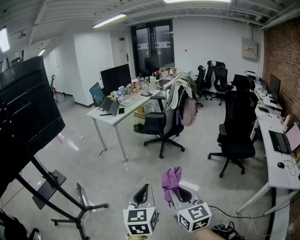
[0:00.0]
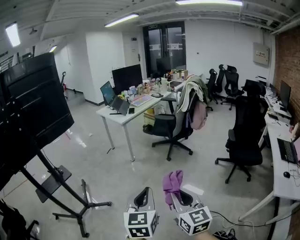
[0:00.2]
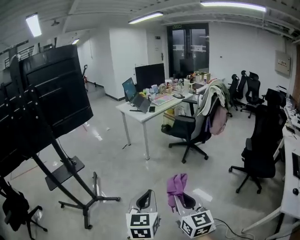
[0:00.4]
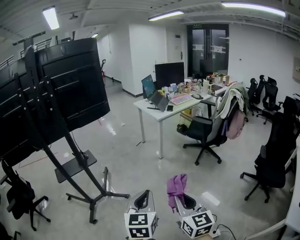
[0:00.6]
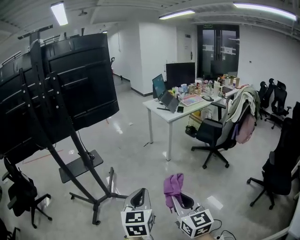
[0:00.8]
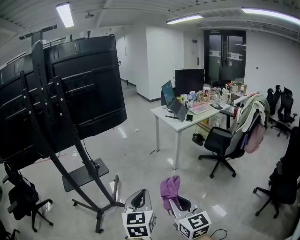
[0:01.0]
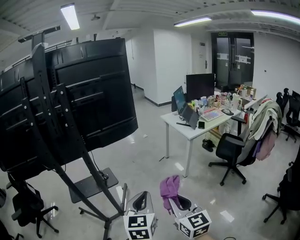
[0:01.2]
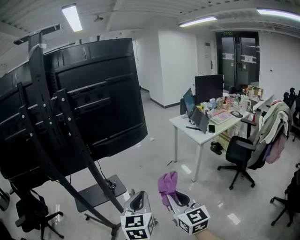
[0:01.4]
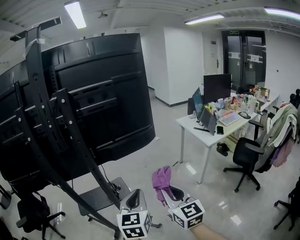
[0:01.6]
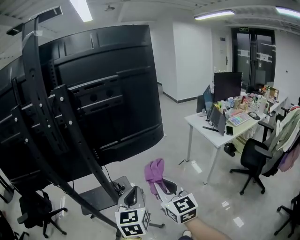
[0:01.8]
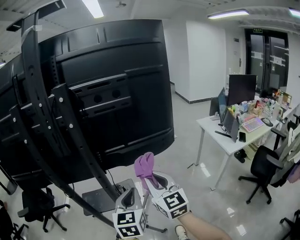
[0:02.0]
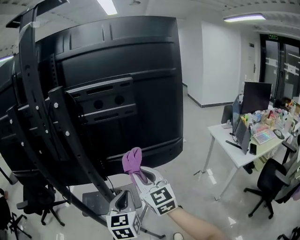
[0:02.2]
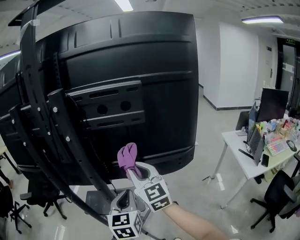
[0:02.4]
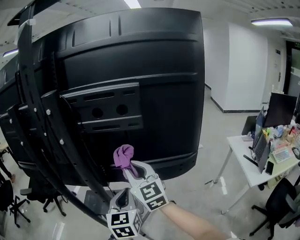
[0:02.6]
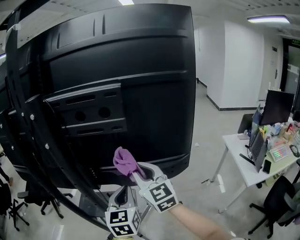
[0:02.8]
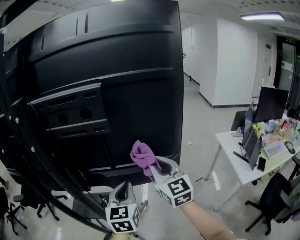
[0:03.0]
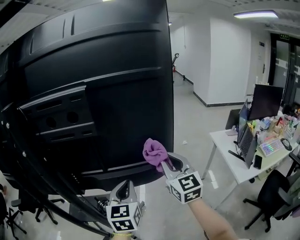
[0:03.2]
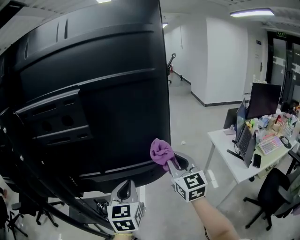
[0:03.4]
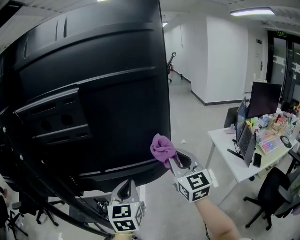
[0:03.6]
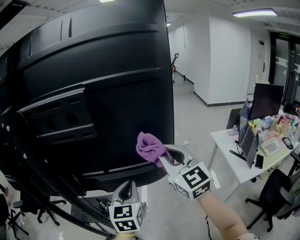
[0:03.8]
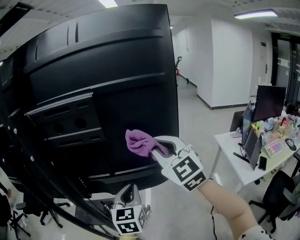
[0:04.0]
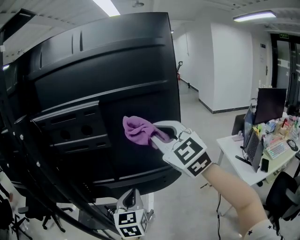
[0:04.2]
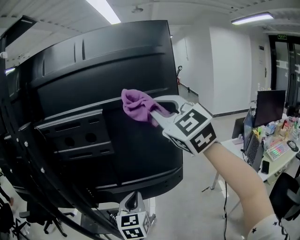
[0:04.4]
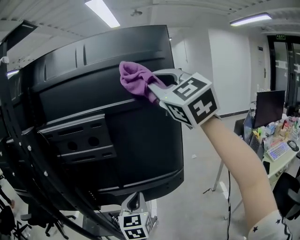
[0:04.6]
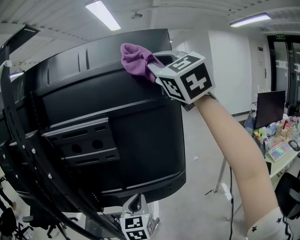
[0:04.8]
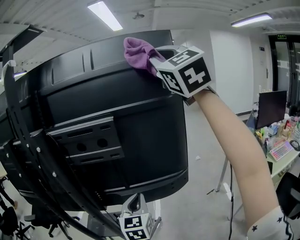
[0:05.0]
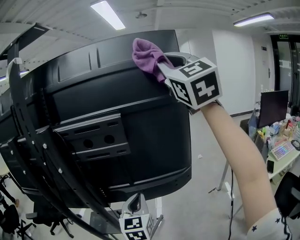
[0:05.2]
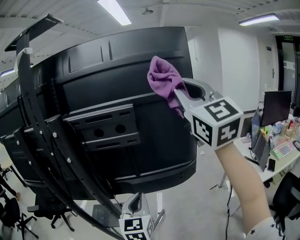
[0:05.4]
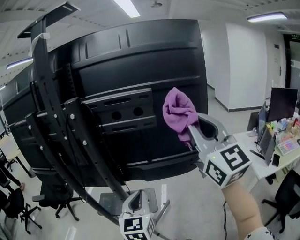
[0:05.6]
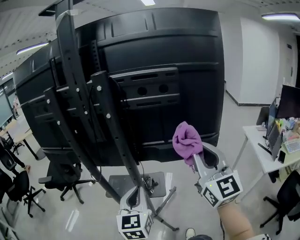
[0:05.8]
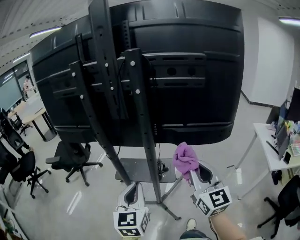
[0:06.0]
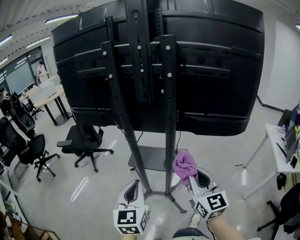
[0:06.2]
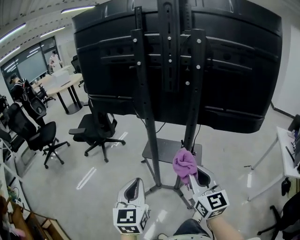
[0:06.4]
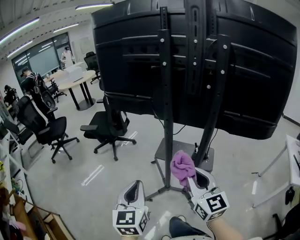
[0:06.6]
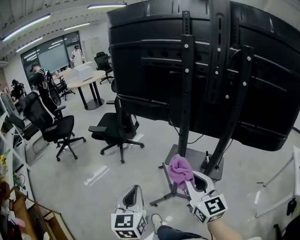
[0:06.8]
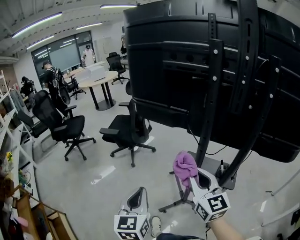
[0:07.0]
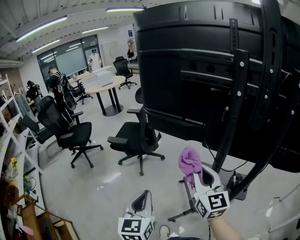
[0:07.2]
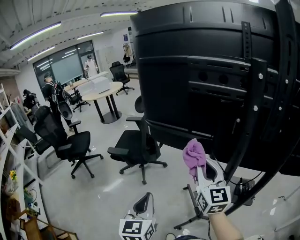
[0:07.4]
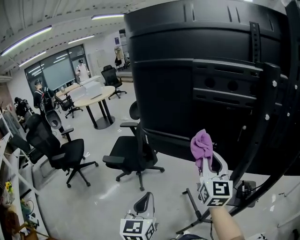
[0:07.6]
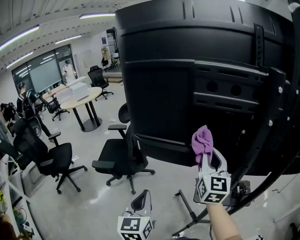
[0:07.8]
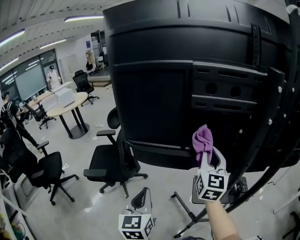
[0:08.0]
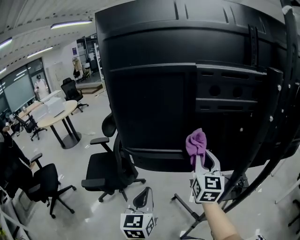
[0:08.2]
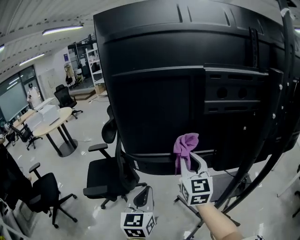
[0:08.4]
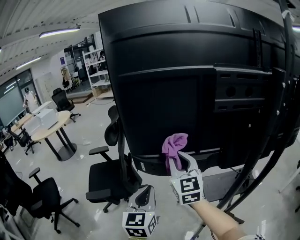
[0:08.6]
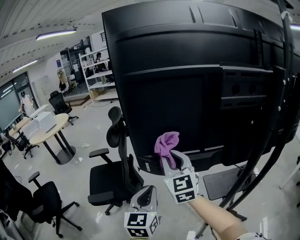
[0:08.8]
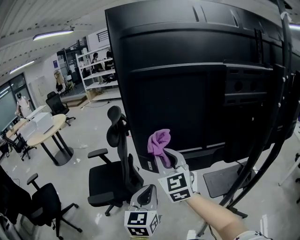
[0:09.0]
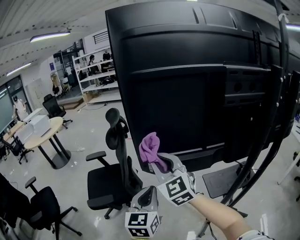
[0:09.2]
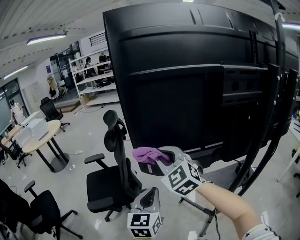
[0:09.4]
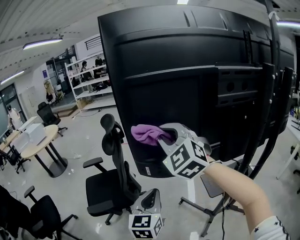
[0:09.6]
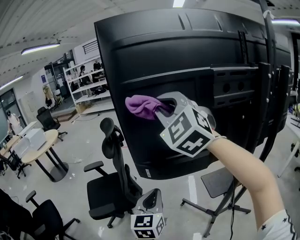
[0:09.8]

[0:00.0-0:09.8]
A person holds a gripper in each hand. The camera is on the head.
0:00.0 to 0:01.4: The two grippers travel together, roughly 50 cm. The right gripper turns by approximately 40 degrees, while the left gripper rotates approximately 30 degrees.
0:01.4 to 0:02.8: The left gripper ends up roughly 35 cm from where it was, and rotates some 30 degrees, while the right gripper ends up approximately 50 cm from where it was, and swivels approximately 40 degrees.
0:02.8 to 0:04.2: The right gripper shifts approximately 20 cm upward and to the right, and swivels roughly 20 degrees; the left gripper travels to the right by roughly 5 cm.
0:04.2 to 0:05.6: The left gripper is displaced to the left and backward by about 15 cm, while the right gripper shifts approximately 10 cm backward, goes upward and returns, about 30 cm each way, and swivels approximately 30 degrees.
0:05.6 to 0:07.0: Both grippers are carried about 50 cm. The left gripper swivels about 30 degrees; the right gripper swivels approximately 40 degrees.
0:07.0 to 0:08.4: Both grippers are carried roughly 40 cm. The left gripper rotates approximately 30 degrees. Meanwhile the right gripper turns by roughly 40 degrees.
0:08.4 to 0:09.8: The left gripper changes place by about 5 cm; the right gripper is displaced upward and to the left by roughly 25 cm, and twists some 50 degrees counterclockwise, seen from behind.

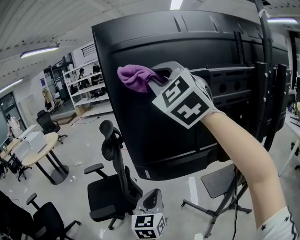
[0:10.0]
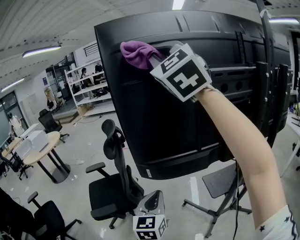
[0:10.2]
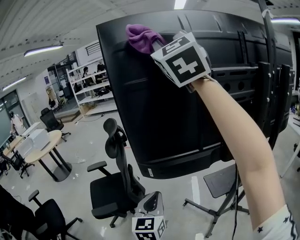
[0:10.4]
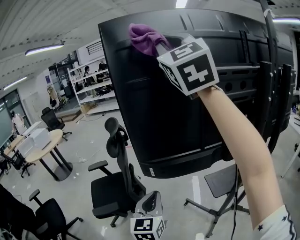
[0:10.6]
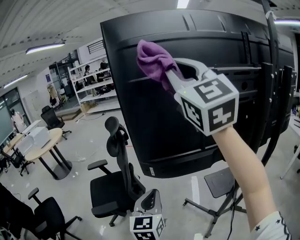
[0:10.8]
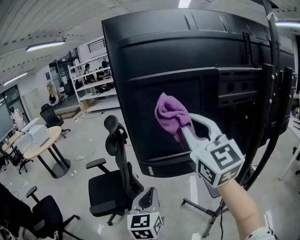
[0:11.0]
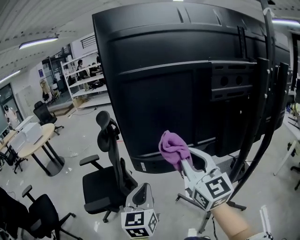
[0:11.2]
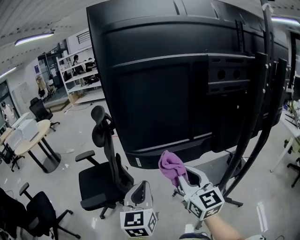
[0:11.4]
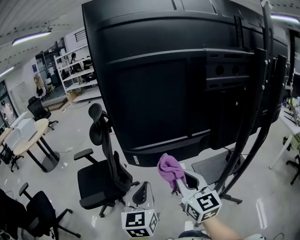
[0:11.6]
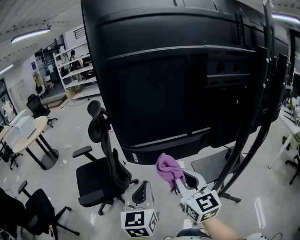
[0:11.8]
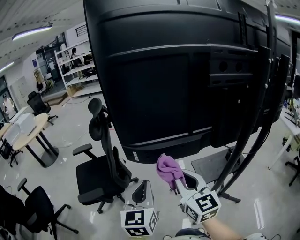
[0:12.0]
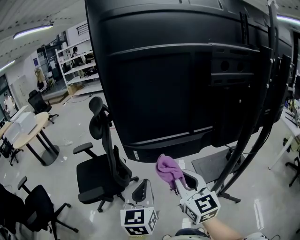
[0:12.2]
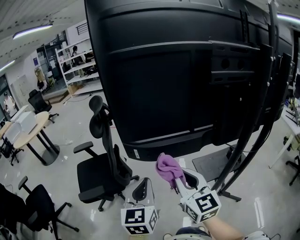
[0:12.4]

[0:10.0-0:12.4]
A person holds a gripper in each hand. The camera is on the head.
0:10.0 to 0:11.2: The right gripper is displaced downward by roughly 25 cm, and twists approximately 40 degrees clockwise, seen from behind.
0:11.2 to 0:12.4: The right gripper goes some 15 cm downward.

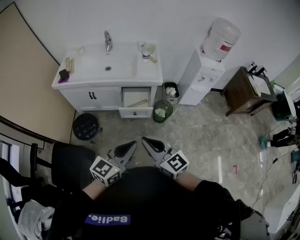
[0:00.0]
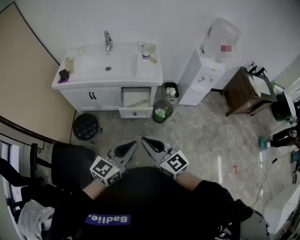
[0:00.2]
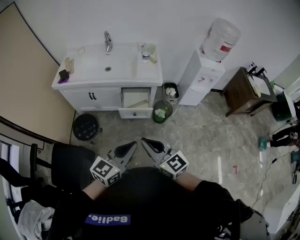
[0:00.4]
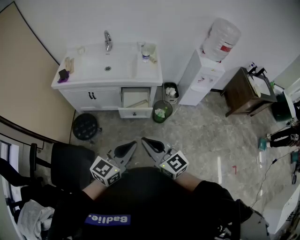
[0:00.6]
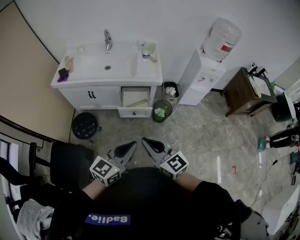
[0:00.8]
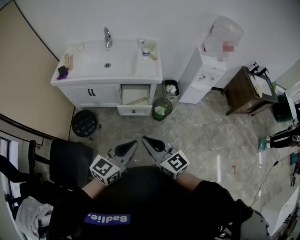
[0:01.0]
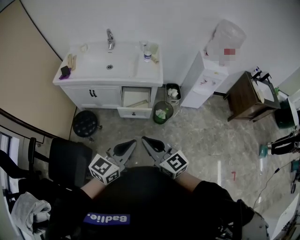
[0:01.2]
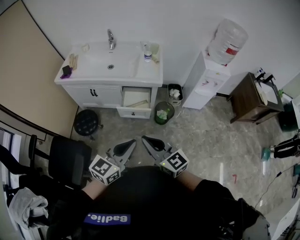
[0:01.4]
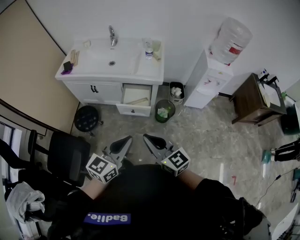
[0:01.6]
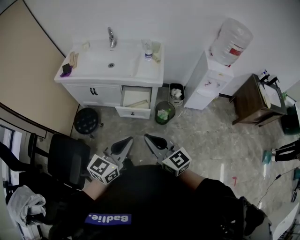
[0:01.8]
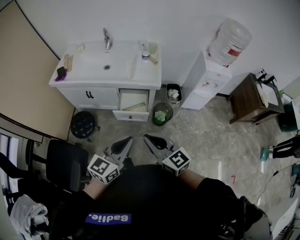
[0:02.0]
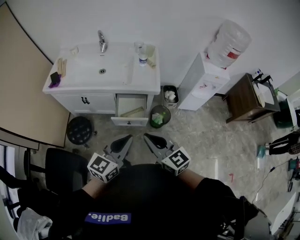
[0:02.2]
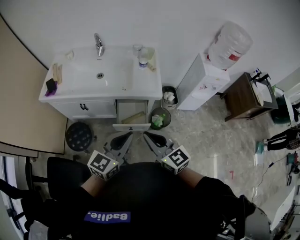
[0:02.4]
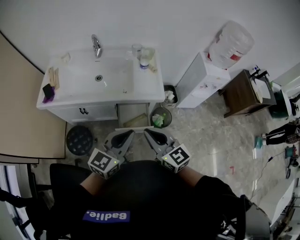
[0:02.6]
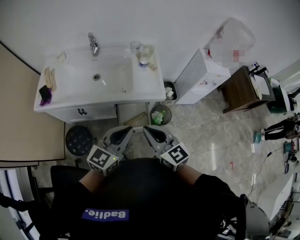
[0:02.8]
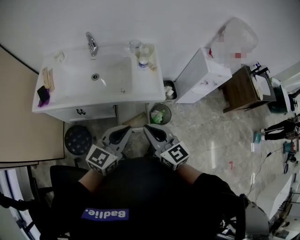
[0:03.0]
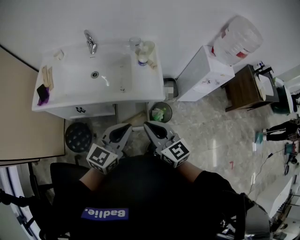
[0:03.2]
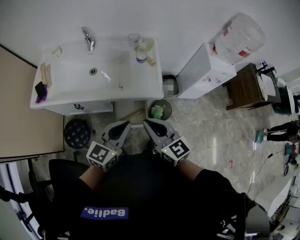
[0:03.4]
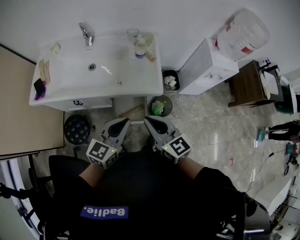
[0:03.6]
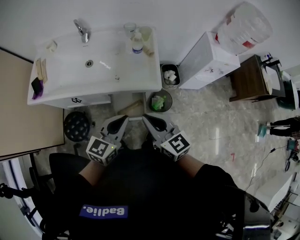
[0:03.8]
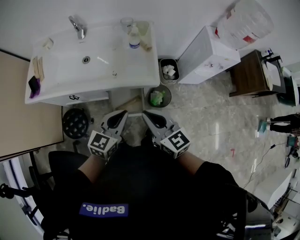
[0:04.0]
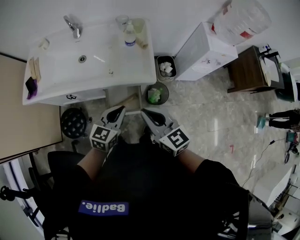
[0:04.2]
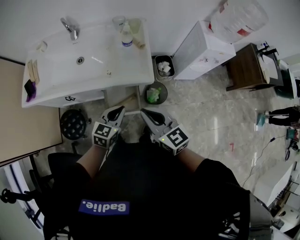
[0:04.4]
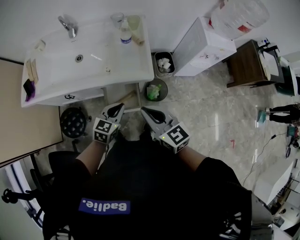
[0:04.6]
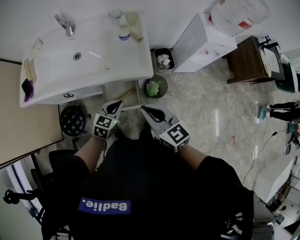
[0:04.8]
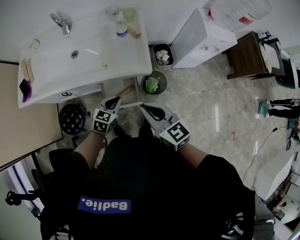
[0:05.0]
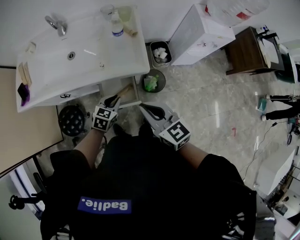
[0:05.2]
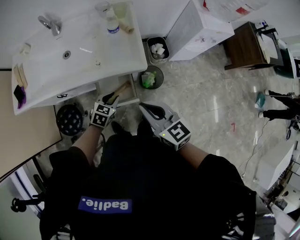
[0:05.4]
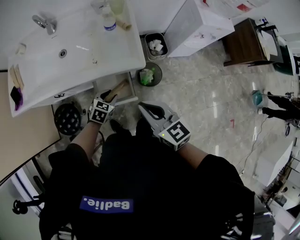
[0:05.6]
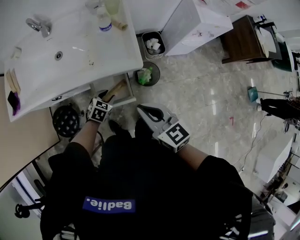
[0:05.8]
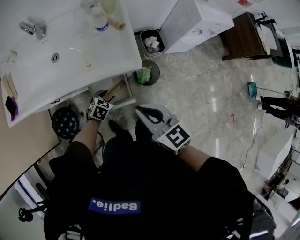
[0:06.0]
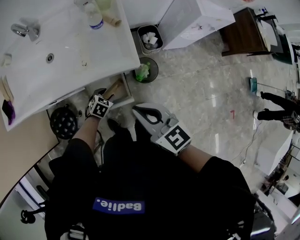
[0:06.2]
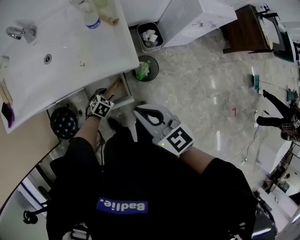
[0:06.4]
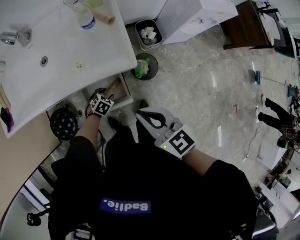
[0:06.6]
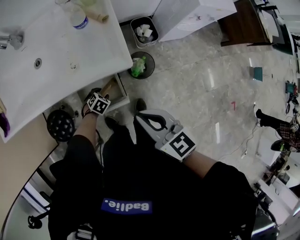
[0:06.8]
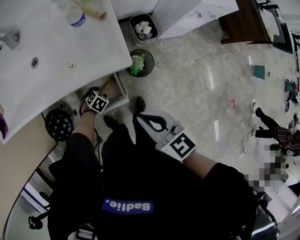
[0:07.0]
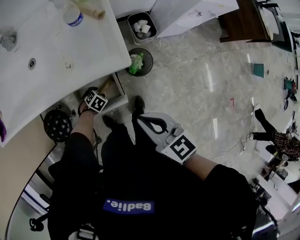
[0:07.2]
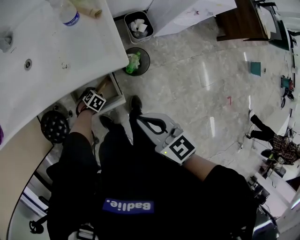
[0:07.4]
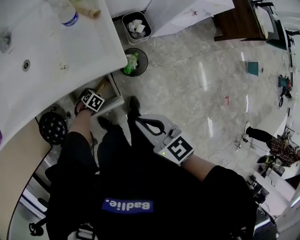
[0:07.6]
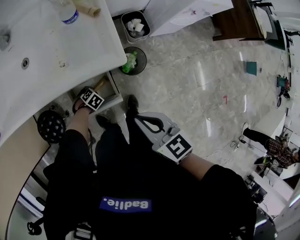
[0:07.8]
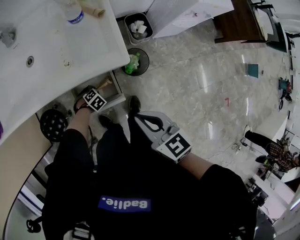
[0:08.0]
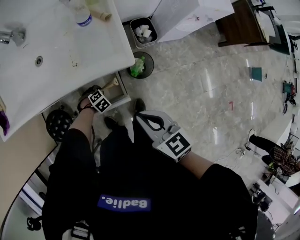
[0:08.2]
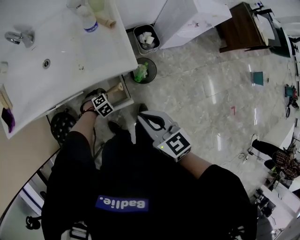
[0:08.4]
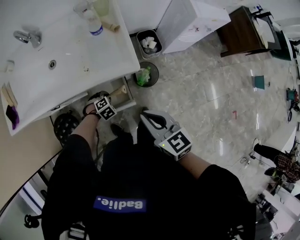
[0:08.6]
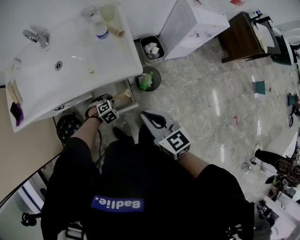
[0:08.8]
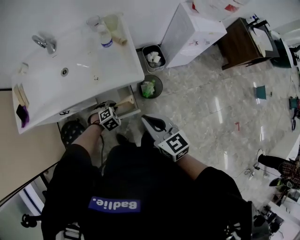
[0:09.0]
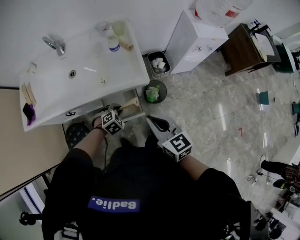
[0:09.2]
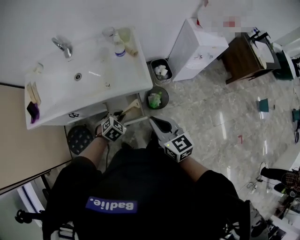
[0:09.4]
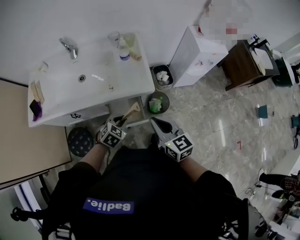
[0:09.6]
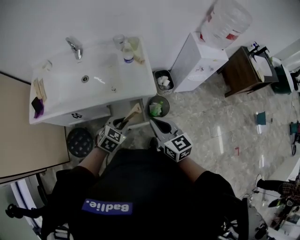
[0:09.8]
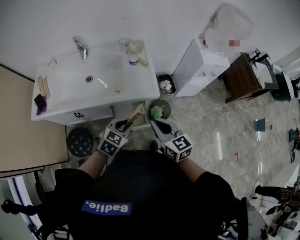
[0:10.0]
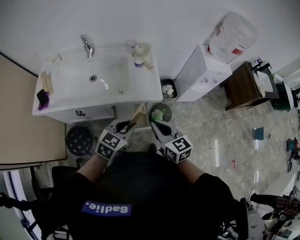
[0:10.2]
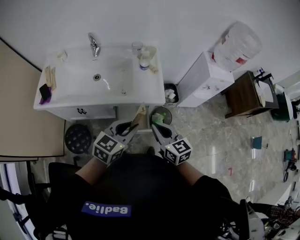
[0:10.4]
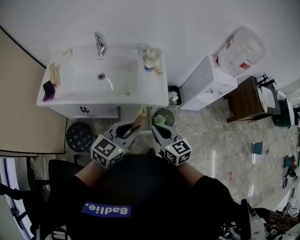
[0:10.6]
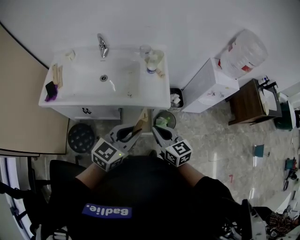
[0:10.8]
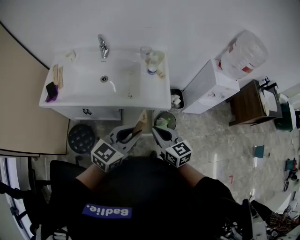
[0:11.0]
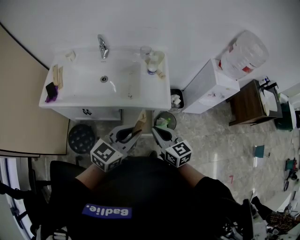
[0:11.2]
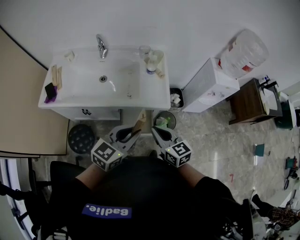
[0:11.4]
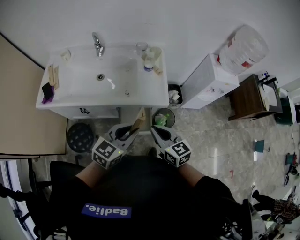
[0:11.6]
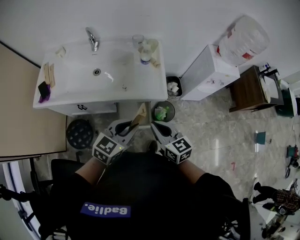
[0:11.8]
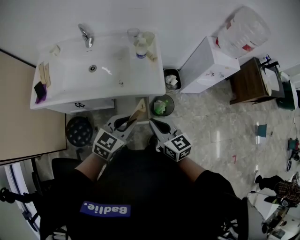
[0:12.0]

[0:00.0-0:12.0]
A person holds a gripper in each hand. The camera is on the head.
0:00.0 to 0:01.6: The two grippers go about 10 cm to the right.
0:01.6 to 0:03.0: Both grippers travel together forward, about 30 cm.
0:03.0 to 0:04.4: The left gripper is displaced downward, to the right and forward by some 20 cm, and swivels about 20 degrees, while the right gripper is displaced to the right by about 10 cm.
0:04.4 to 0:06.0: The left gripper shifts some 25 cm downward, angles its fingers downward, by roughly 30 degrees, and opens its fingers. Meanwhile the right gripper shifts approximately 5 cm downward.
0:06.0 to 0:07.6: The left gripper goes about 20 cm downward, and swivels some 30 degrees, while the right gripper travels downward by about 10 cm.
0:07.6 to 0:09.0: The left gripper moves upward, roughly 20 cm, swivels about 30 degrees, and closes its fingers; the right gripper heads upward, covering some 10 cm.
0:09.0 to 0:10.4: The right gripper heads to the left and upward, covering roughly 10 cm. The left gripper goes approximately 35 cm upward, and points its fingers some 50 degrees further upward.
0:10.4 to 0:12.0: The left gripper is displaced downward by about 5 cm.
